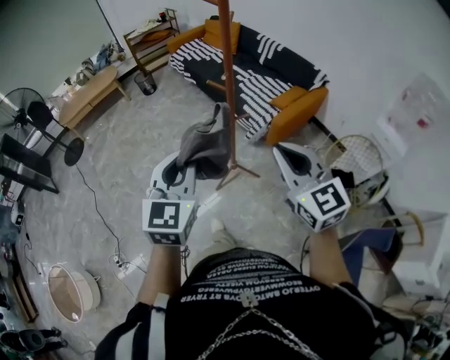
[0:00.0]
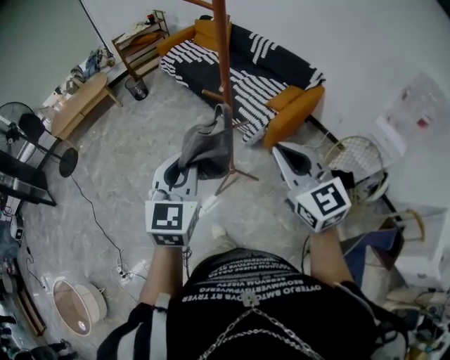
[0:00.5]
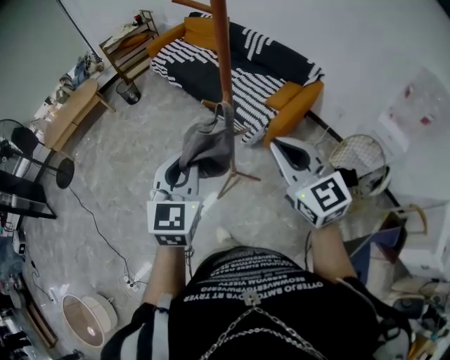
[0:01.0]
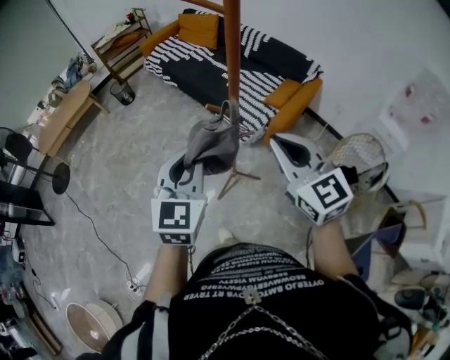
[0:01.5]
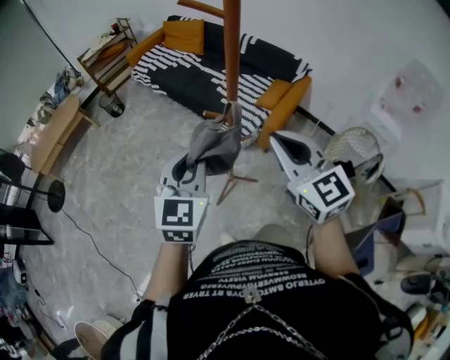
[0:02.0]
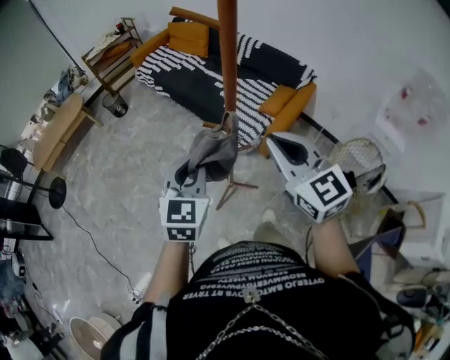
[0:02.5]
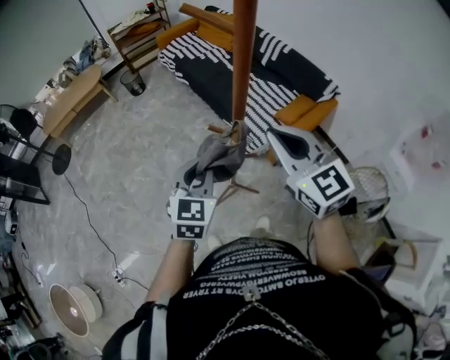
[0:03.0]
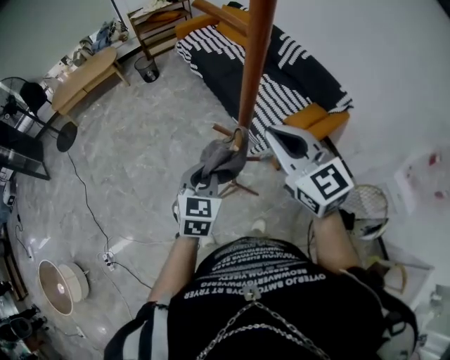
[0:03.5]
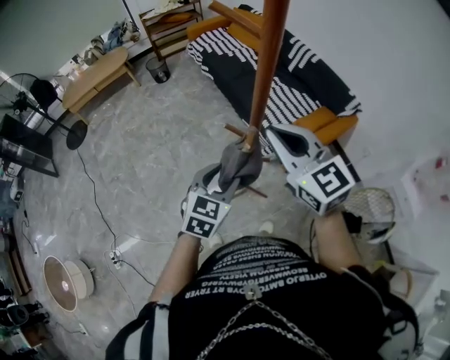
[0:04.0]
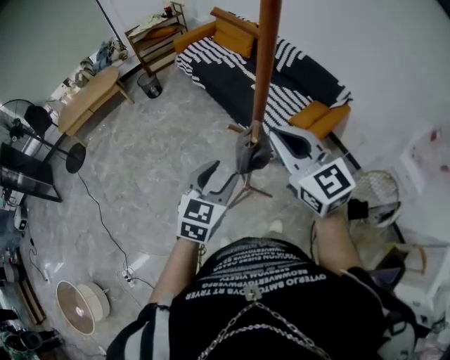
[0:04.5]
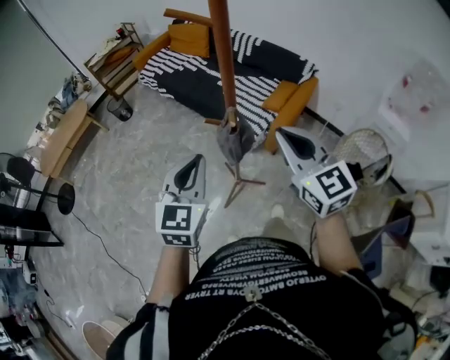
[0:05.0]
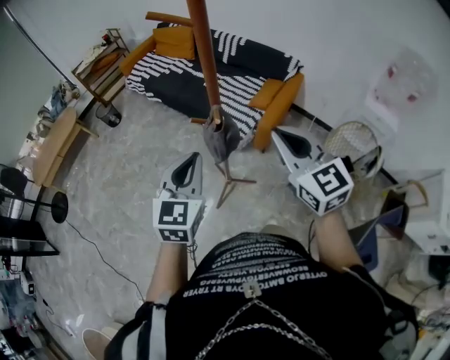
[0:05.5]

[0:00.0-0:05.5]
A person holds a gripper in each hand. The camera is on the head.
0:00.0 to 0:02.0: Both grippers travel together forward, roughly 25 cm.
0:02.0 to 0:03.5: The left gripper is displaced downward, to the right and forward by about 15 cm, and swivels some 30 degrees, while the right gripper goes about 15 cm forward, and swivels some 20 degrees.
0:03.5 to 0:05.5: The left gripper goes some 10 cm upward, changes its angle by about 30 degrees, and opens and closes again. The right gripper shifts by approximately 15 cm, and turns by about 30 degrees.

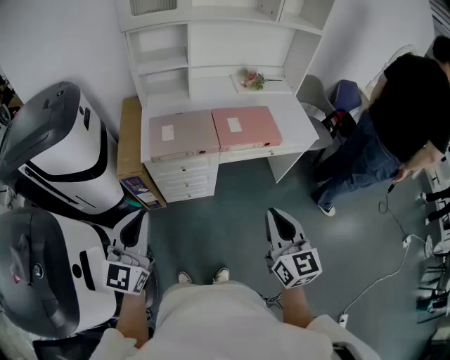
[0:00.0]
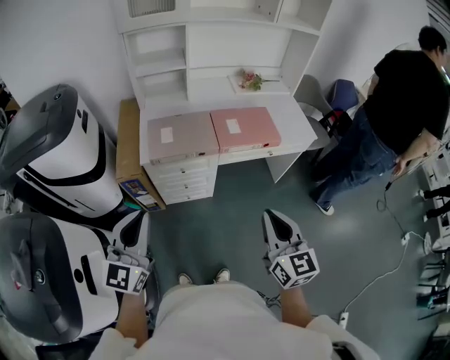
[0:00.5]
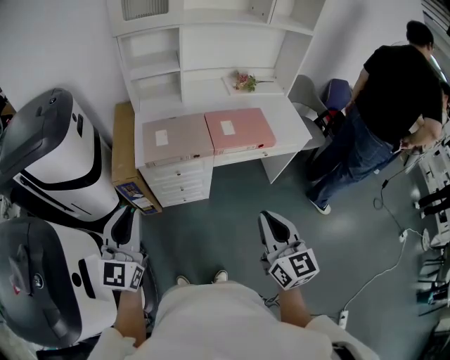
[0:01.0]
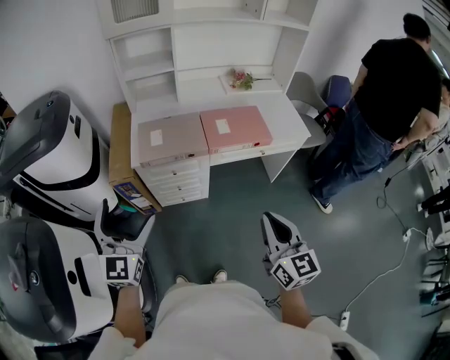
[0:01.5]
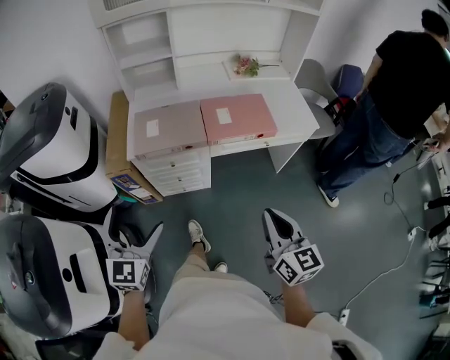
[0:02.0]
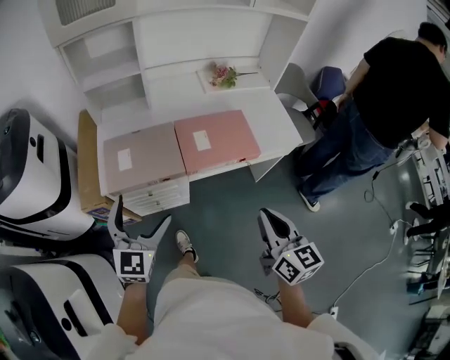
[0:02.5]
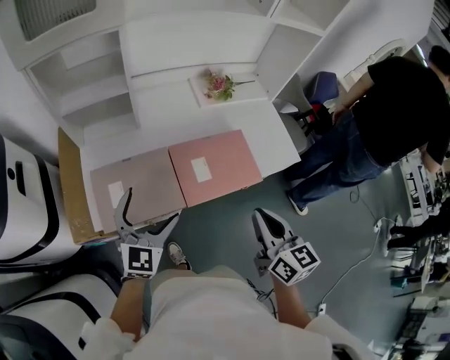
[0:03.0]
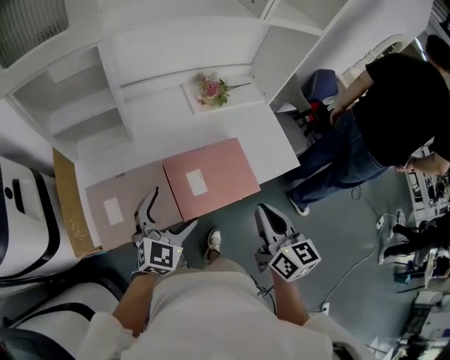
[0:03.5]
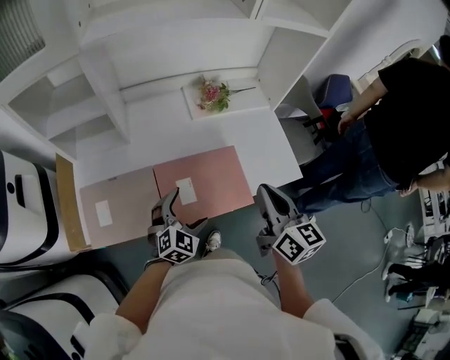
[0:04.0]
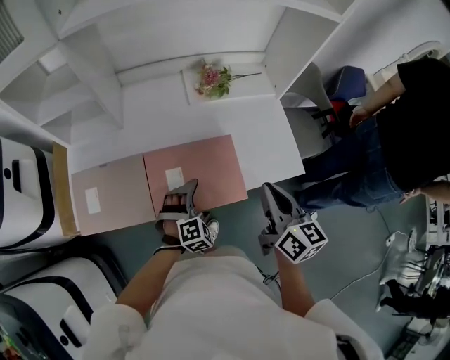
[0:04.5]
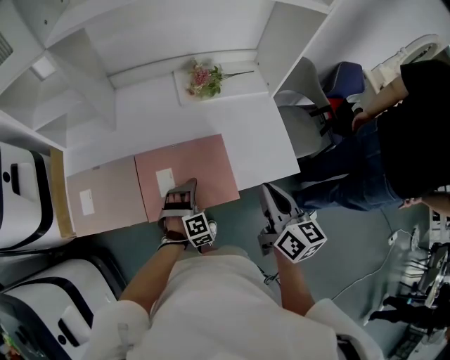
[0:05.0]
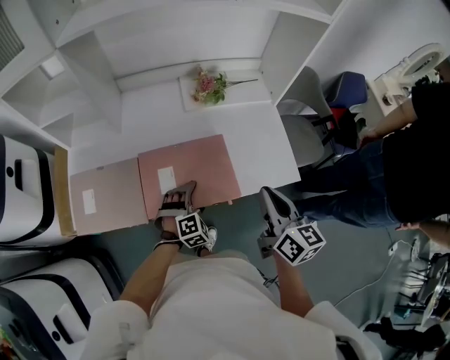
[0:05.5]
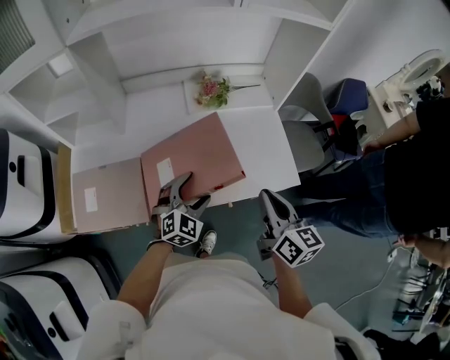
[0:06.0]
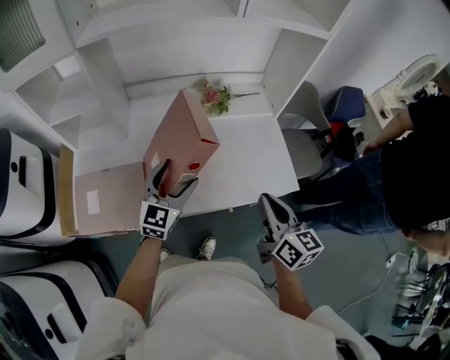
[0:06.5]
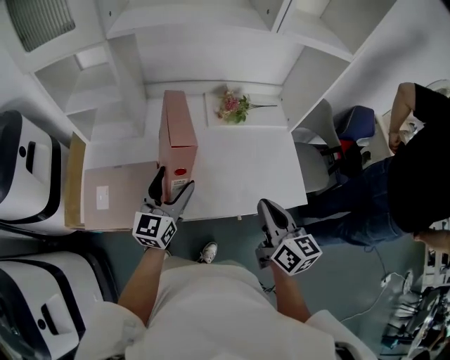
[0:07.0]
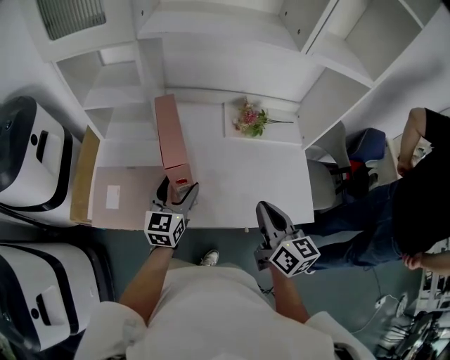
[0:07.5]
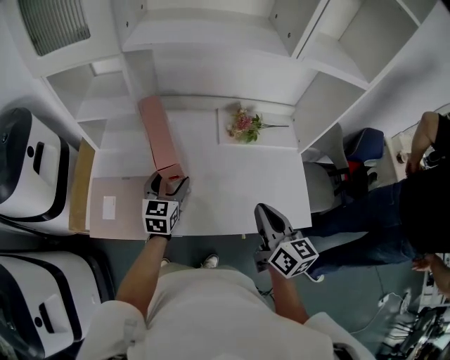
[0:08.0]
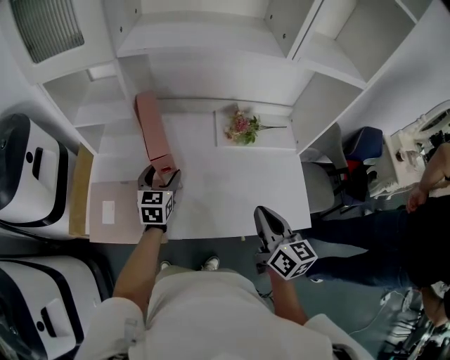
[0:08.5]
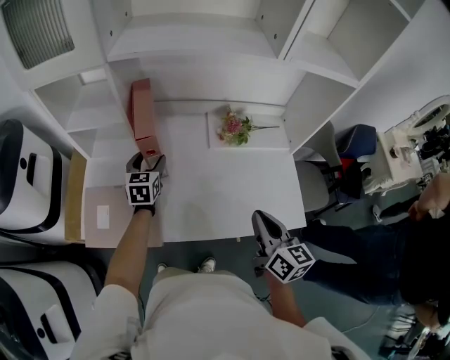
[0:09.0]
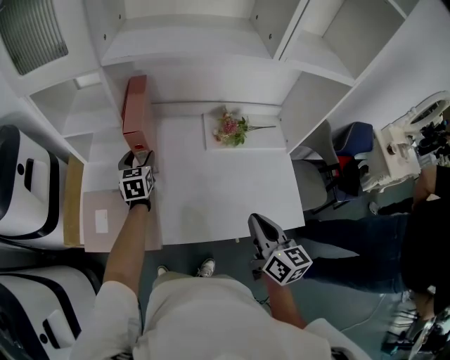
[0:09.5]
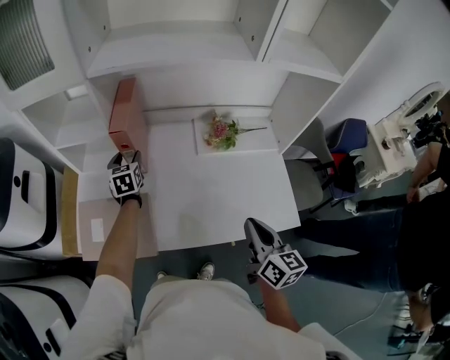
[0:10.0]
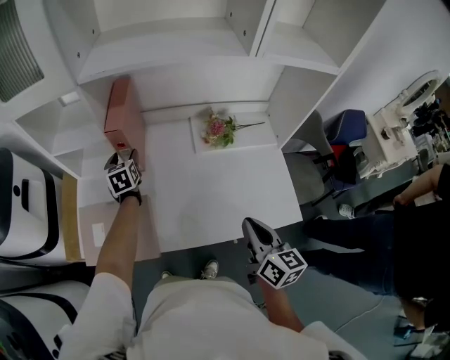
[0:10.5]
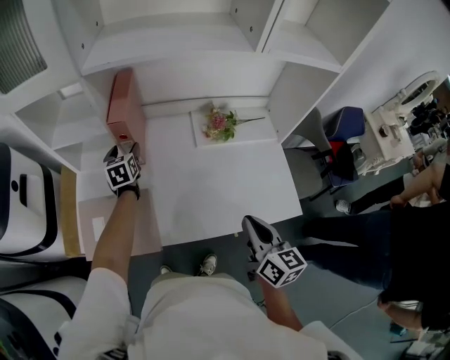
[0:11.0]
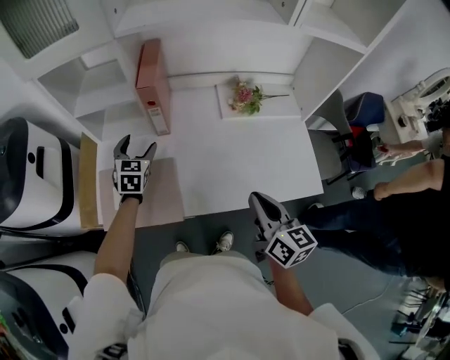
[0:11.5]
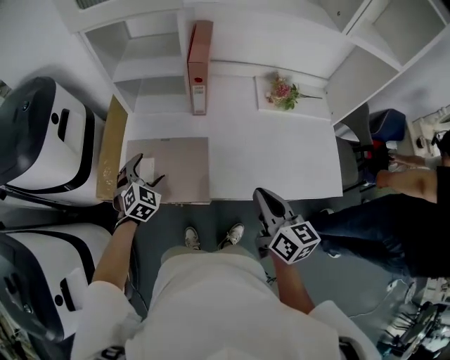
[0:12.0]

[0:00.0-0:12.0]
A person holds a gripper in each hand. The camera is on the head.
0:00.0 to 0:02.0: The left gripper heads downward, covering approximately 5 cm, and opens, while the right gripper travels to the right and downward by about 10 cm.
0:02.0 to 0:04.0: Both grippers are carried forward, roughly 50 cm. The left gripper turns by some 40 degrees.
0:04.0 to 0:06.0: Both grippers travel together to the right, some 10 cm. The left gripper goes downward and returns, about 10 cm each way.
0:06.0 to 0:08.0: The left gripper moves to the left and forward, about 20 cm, and changes its angle by about 50 degrees, while the right gripper moves to the left and forward, roughly 10 cm.
0:08.0 to 0:10.0: The left gripper shifts about 15 cm forward and to the left.
0:10.0 to 0:12.0: The left gripper shifts approximately 30 cm backward and to the left, and rotates around the line of its fingers by roughly 40 degrees, clockwise from behind. Meanwhile the right gripper is displaced to the left by approximately 20 cm.

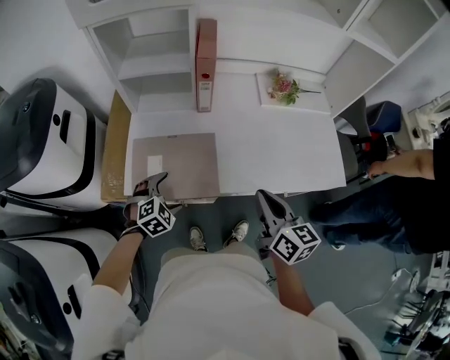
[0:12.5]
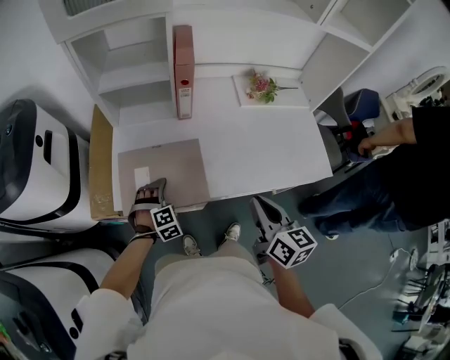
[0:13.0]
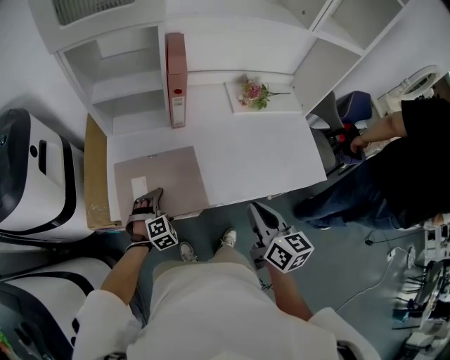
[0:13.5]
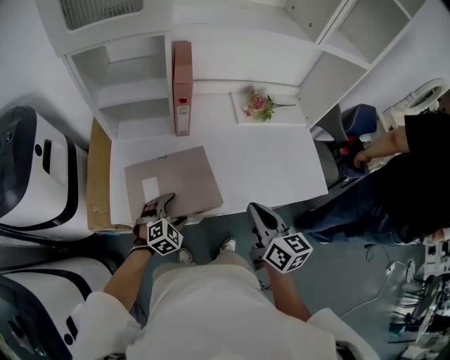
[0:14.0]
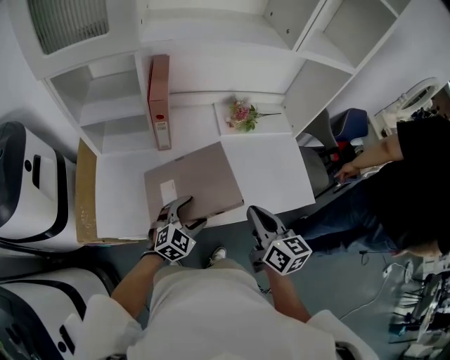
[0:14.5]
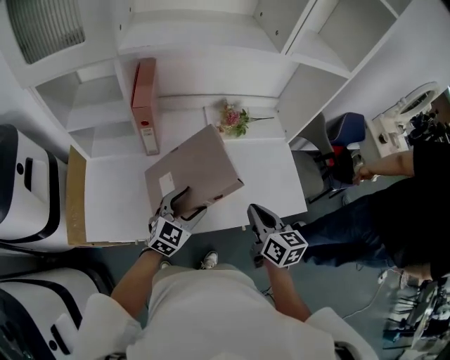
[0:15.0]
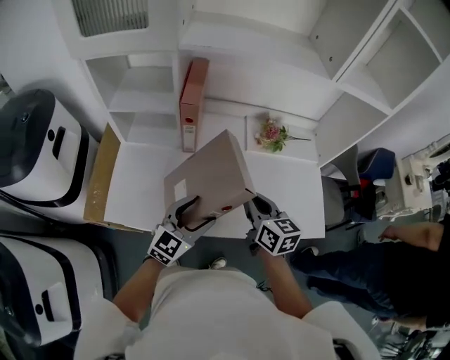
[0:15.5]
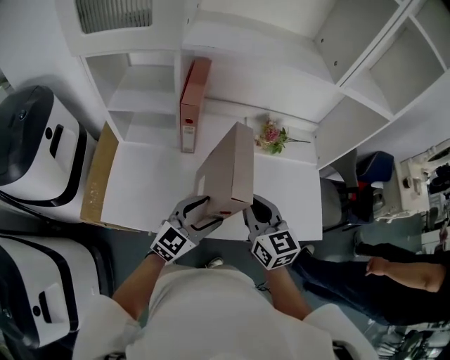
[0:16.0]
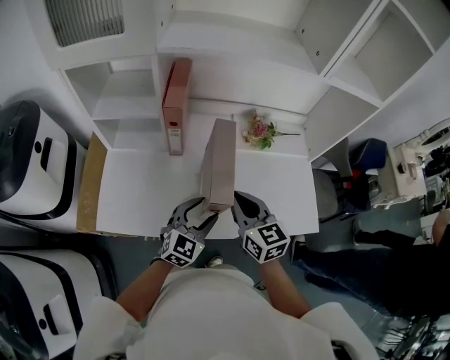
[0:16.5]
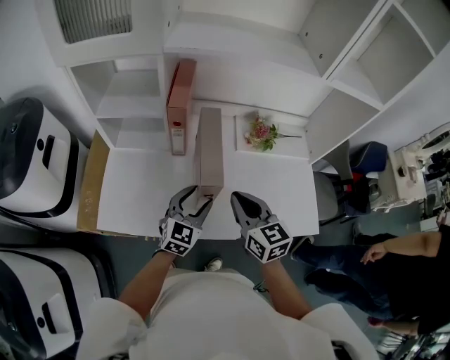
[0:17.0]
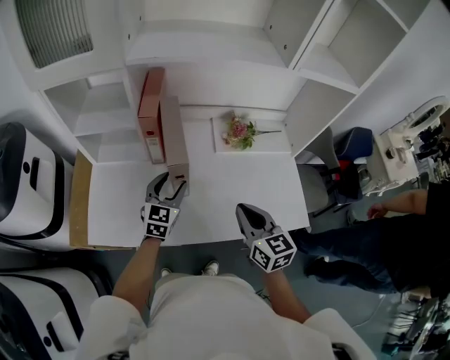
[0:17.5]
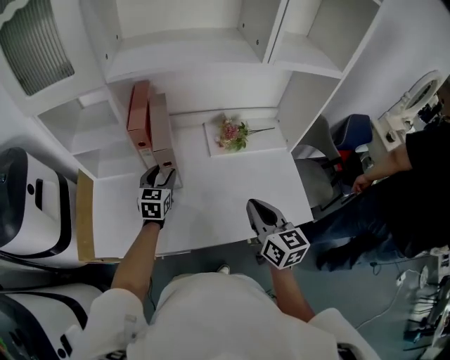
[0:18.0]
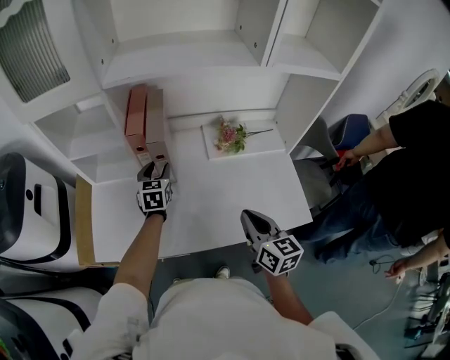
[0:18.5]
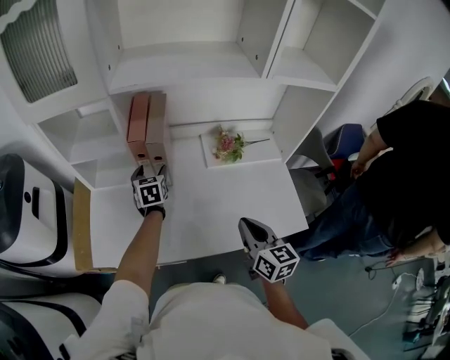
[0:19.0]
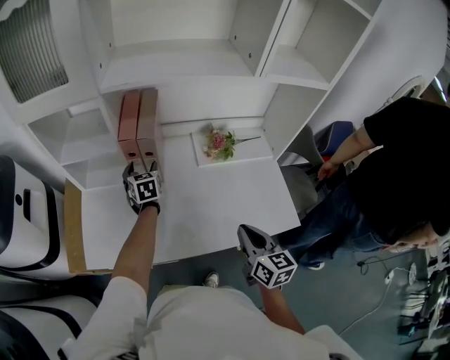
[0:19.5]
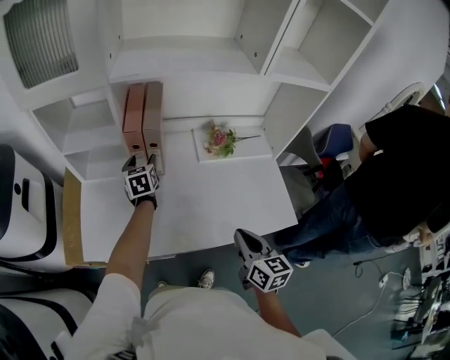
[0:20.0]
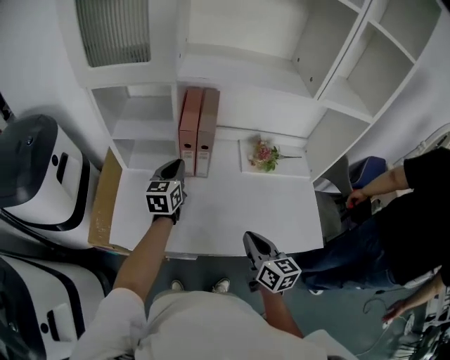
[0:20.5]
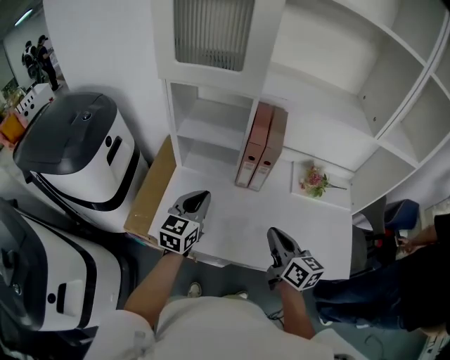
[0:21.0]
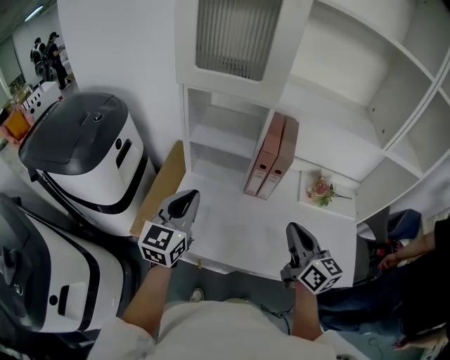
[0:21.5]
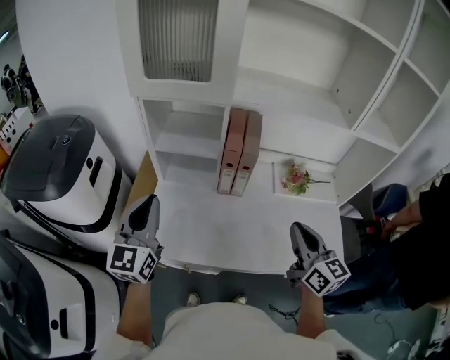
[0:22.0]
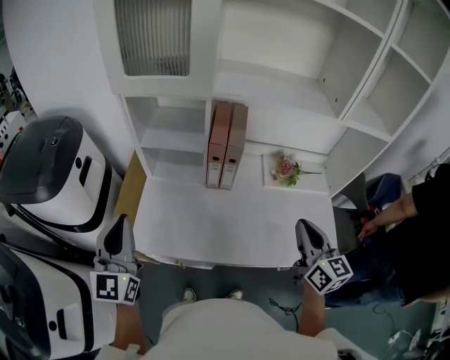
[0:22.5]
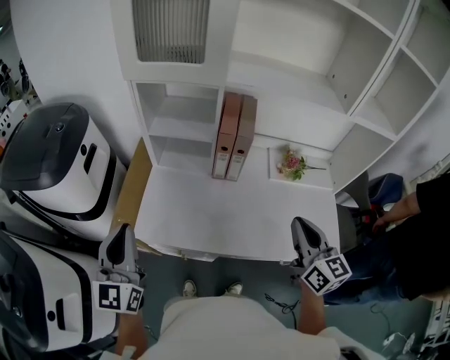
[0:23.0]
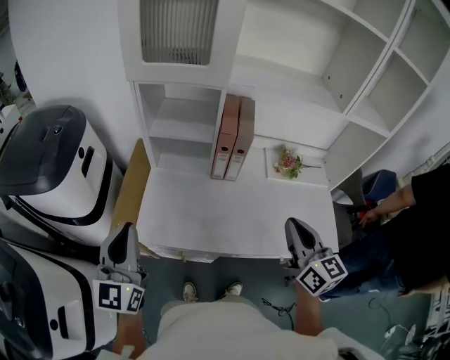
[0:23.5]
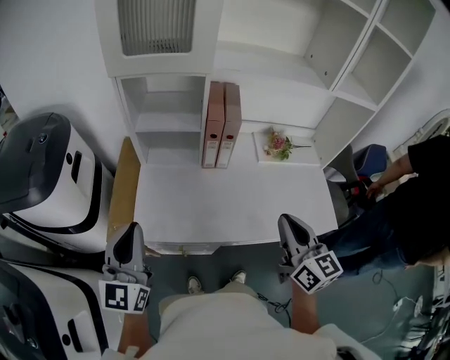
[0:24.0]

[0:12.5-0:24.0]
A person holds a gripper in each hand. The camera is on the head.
0:12.5 to 0:14.5: The right gripper travels to the right and forward by about 10 cm. Meanwhile the left gripper moves to the right, about 20 cm, and turns by roughly 30 degrees.
0:14.5 to 0:16.5: The right gripper is displaced forward and to the left by some 10 cm, and turns by about 20 degrees, while the left gripper is displaced upward and forward by some 10 cm, and turns by approximately 20 degrees.
0:16.5 to 0:18.5: The left gripper is displaced forward by about 20 cm, and rotates roughly 30 degrees, while the right gripper moves to the right, roughly 10 cm.
0:18.5 to 0:20.0: The right gripper heads backward, covering about 5 cm.
0:20.0 to 0:22.0: The right gripper travels upward, to the left and forward by about 20 cm, and swivels about 20 degrees, while the left gripper heads to the left, upward and backward, covering about 40 cm, points its fingers roughly 30 degrees further upward, and closes up.
0:22.0 to 0:24.0: The right gripper is displaced backward and to the left by about 10 cm. Meanwhile the left gripper shifts some 10 cm backward.
